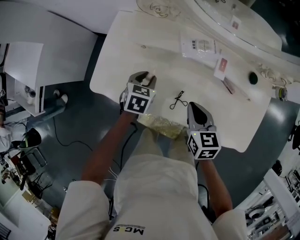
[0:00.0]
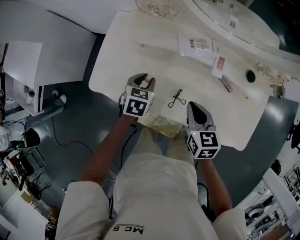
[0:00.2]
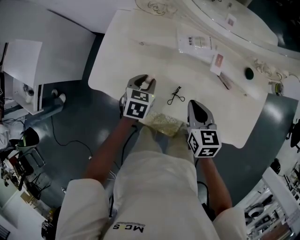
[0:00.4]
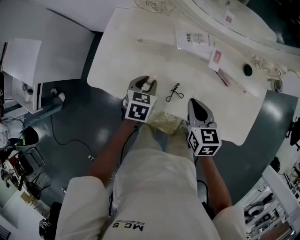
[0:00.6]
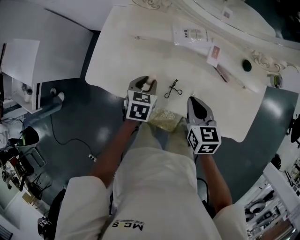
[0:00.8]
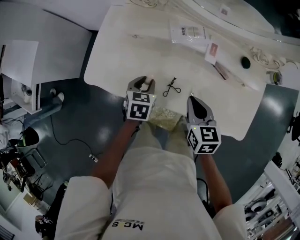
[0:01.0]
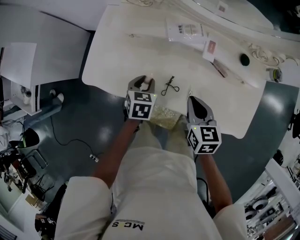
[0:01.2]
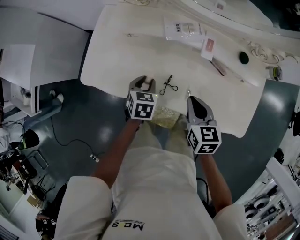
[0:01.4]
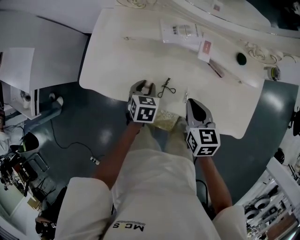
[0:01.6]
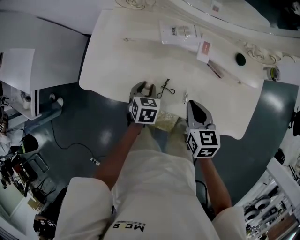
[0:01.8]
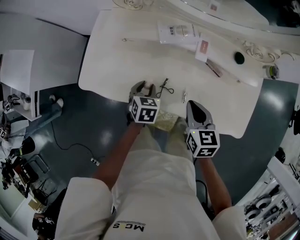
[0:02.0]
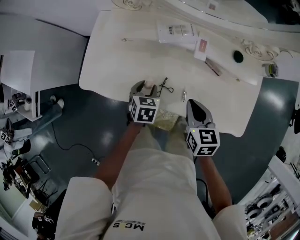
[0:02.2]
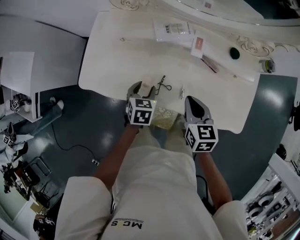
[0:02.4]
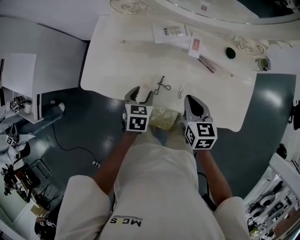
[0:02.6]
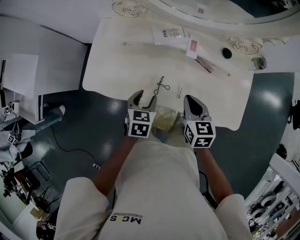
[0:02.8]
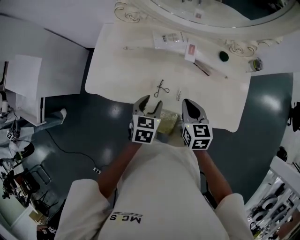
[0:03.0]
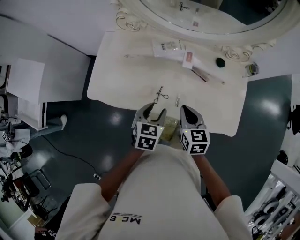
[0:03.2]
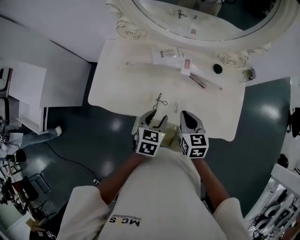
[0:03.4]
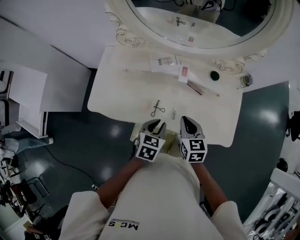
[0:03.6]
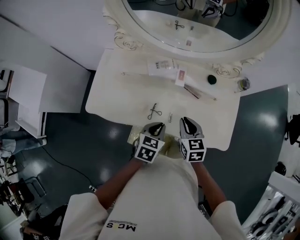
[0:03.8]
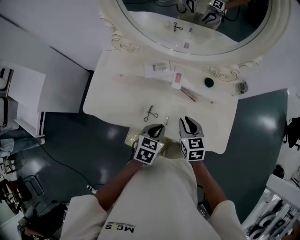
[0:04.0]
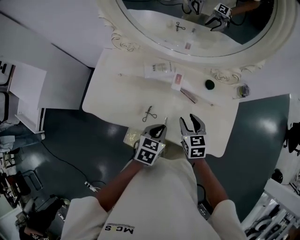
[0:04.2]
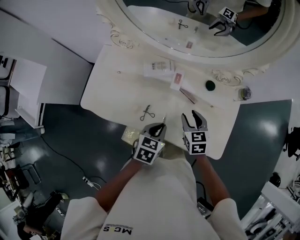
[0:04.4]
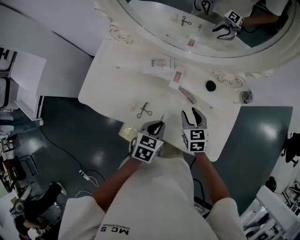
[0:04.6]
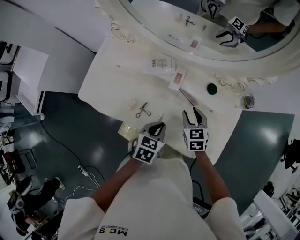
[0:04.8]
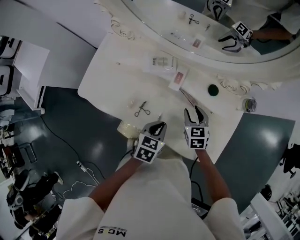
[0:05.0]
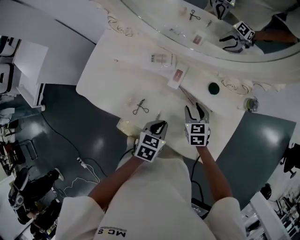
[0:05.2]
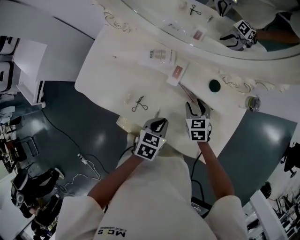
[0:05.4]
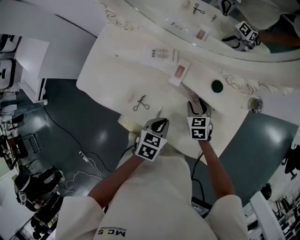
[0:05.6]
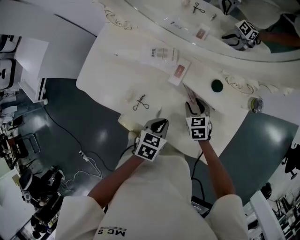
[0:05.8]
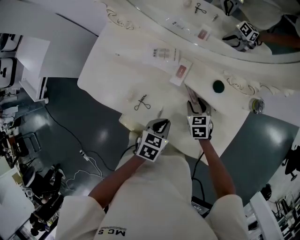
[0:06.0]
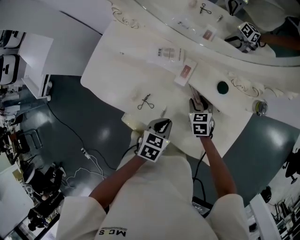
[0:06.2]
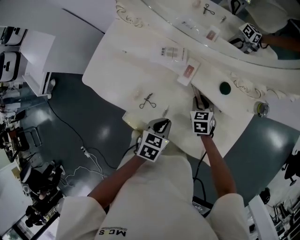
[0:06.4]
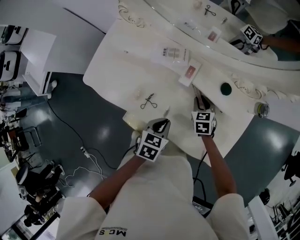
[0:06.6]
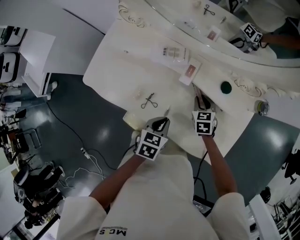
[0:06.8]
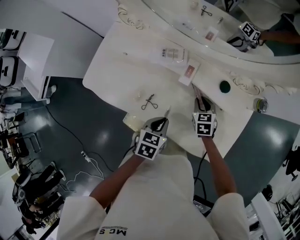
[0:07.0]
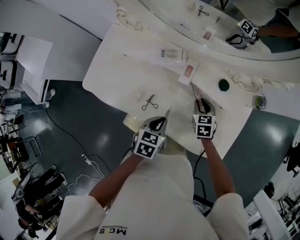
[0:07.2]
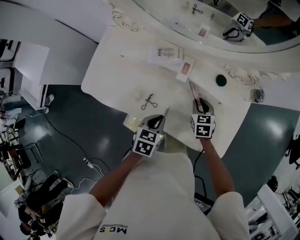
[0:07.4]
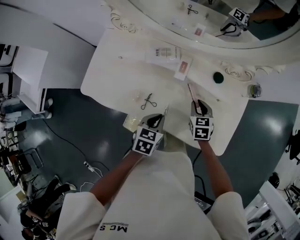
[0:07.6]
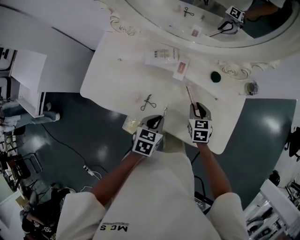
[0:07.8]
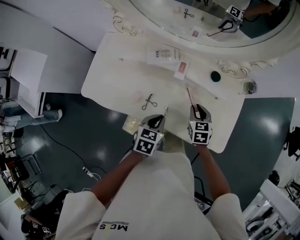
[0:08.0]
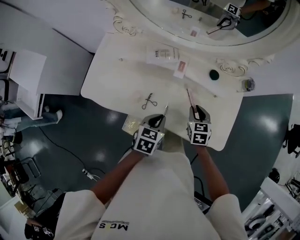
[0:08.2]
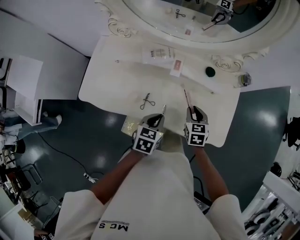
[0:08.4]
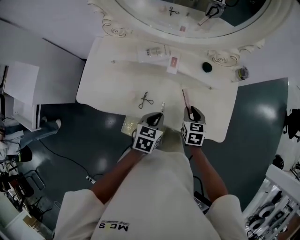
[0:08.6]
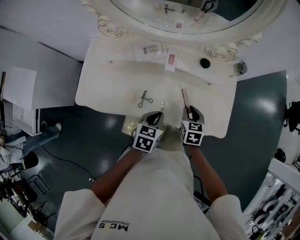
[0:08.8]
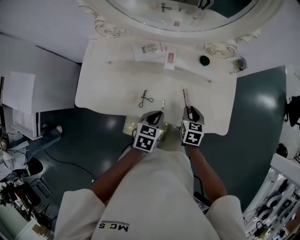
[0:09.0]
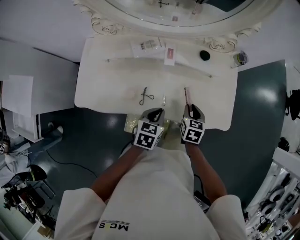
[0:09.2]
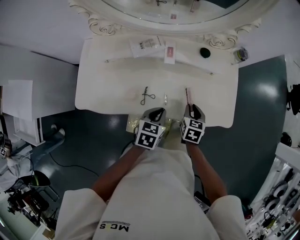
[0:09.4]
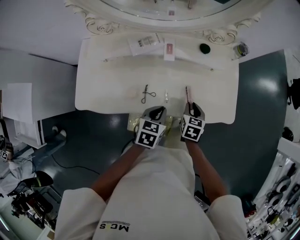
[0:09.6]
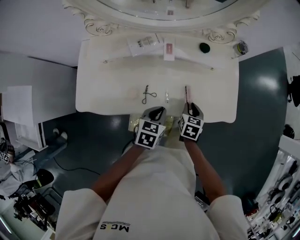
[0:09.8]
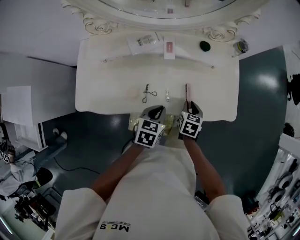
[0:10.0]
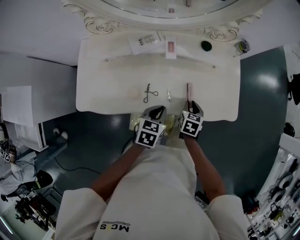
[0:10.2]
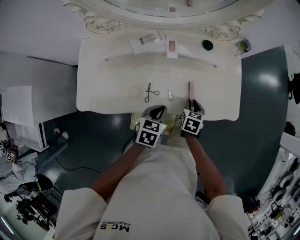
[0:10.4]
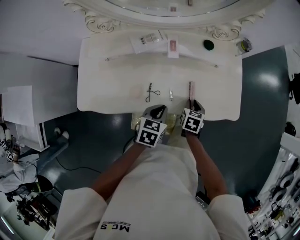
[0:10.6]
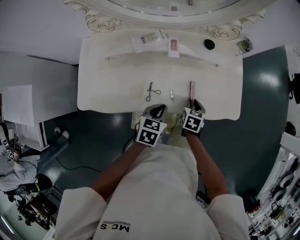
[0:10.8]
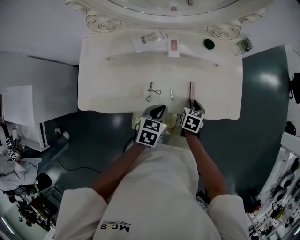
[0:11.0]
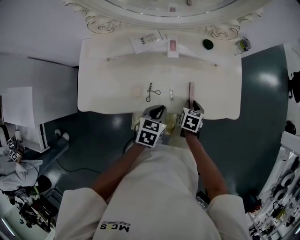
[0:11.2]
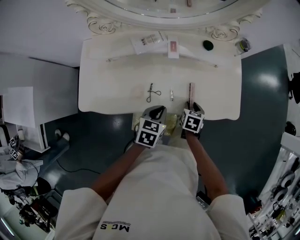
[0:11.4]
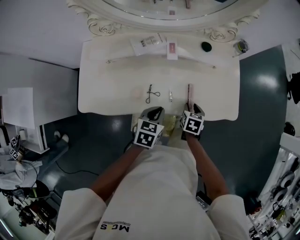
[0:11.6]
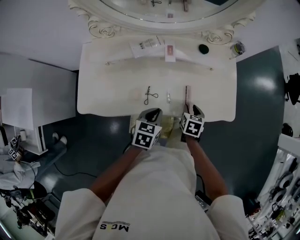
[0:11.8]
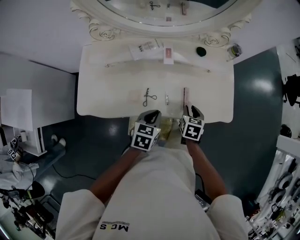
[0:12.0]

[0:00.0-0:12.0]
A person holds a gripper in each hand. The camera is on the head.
0.0 to 1.6 s: The right gripper moves to the right, approximately 5 cm. Meanwhile the left gripper moves backward and to the right, about 10 cm.
1.6 to 3.0 s: The left gripper travels upward and backward by about 15 cm.
3.0 to 4.4 s: The left gripper moves to the right, some 10 cm, and closes up; the right gripper travels to the right and forward by approximately 10 cm, and opens.
4.4 to 6.0 s: The right gripper heads downward and forward, covering approximately 15 cm. Meanwhile the left gripper shifts about 5 cm downward.
6.0 to 7.6 s: The right gripper changes place by some 5 cm, and closes up. Meanwhile the left gripper goes roughly 5 cm to the left.
7.6 to 9.0 s: The right gripper shifts about 10 cm backward, and turns by roughly 20 degrees.
9.0 to 10.4 s: The right gripper heads downward, covering approximately 5 cm.
10.4 to 12.0 s: The right gripper moves roughly 5 cm.

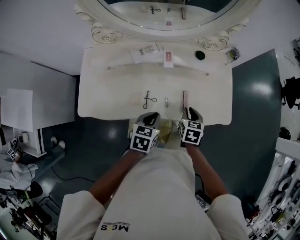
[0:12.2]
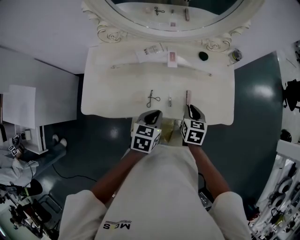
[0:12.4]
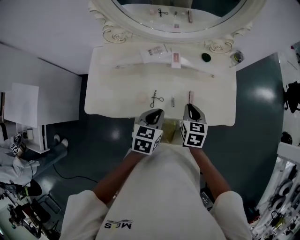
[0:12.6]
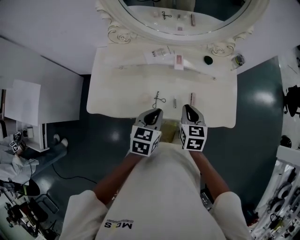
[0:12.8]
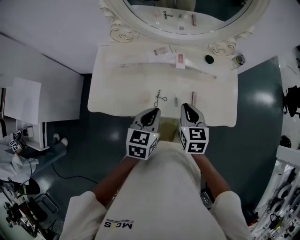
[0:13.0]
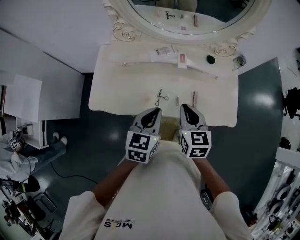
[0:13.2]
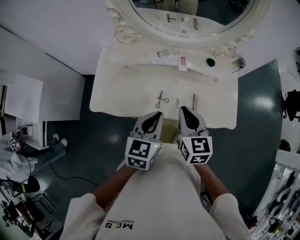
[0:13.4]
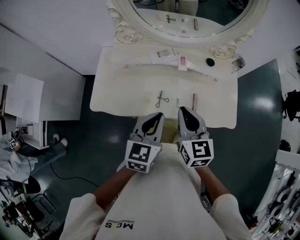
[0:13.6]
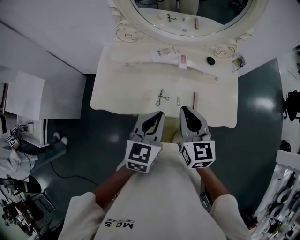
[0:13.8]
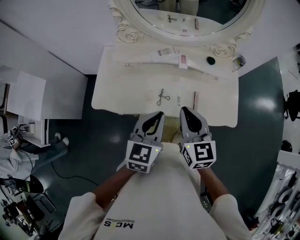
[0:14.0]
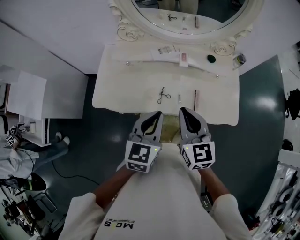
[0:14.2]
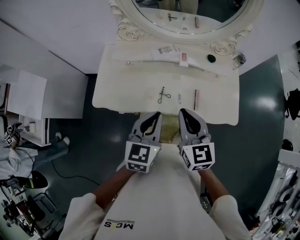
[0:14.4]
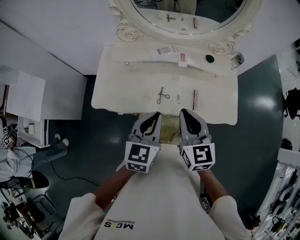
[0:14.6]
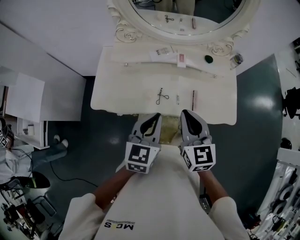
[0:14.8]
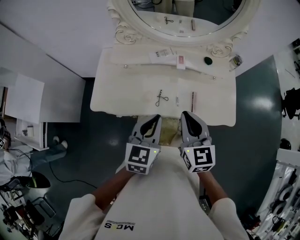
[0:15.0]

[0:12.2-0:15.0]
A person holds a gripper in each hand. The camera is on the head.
12.2 to 13.6 s: The left gripper heads upward, covering about 15 cm, and turns by roughly 30 degrees, while the right gripper heads upward and to the left, covering about 25 cm, and changes its angle by about 40 degrees.
13.6 to 15.0 s: There are only small adjustments of the grippers.

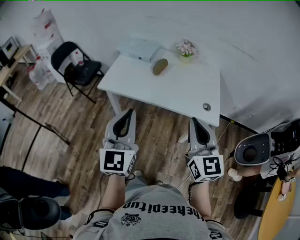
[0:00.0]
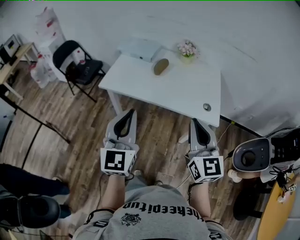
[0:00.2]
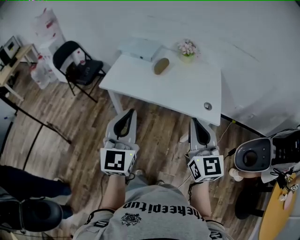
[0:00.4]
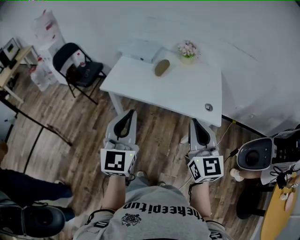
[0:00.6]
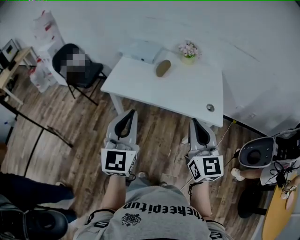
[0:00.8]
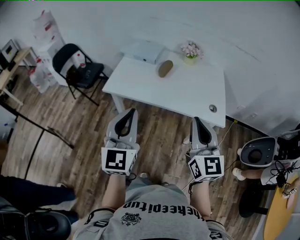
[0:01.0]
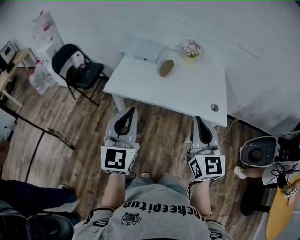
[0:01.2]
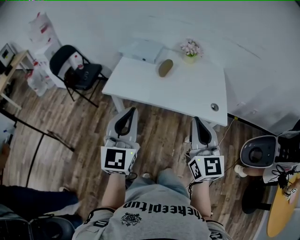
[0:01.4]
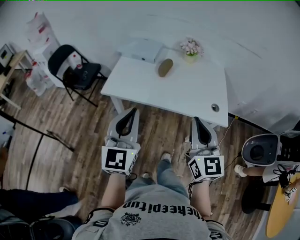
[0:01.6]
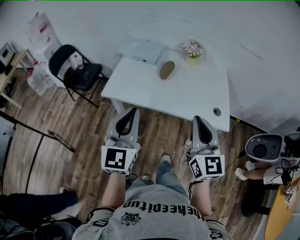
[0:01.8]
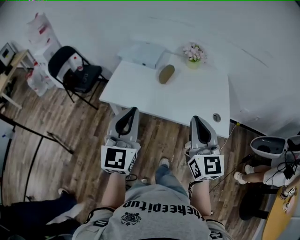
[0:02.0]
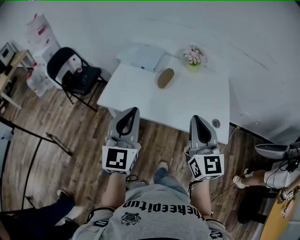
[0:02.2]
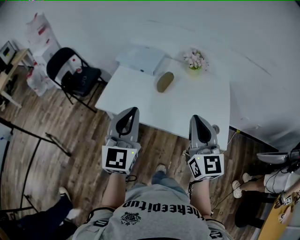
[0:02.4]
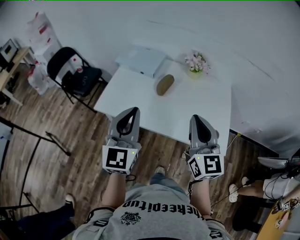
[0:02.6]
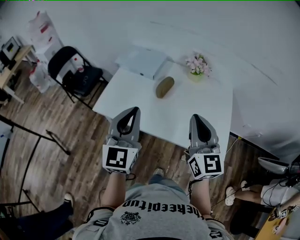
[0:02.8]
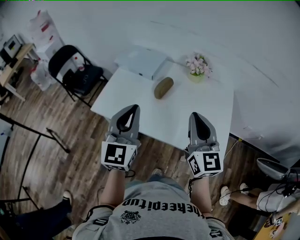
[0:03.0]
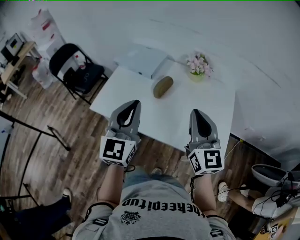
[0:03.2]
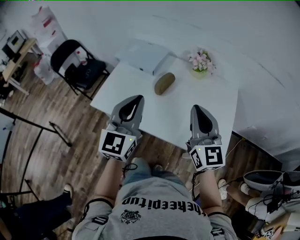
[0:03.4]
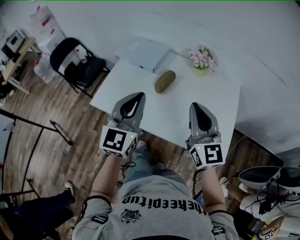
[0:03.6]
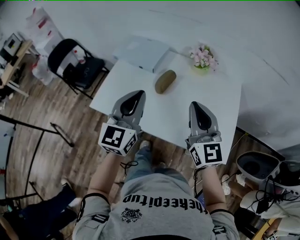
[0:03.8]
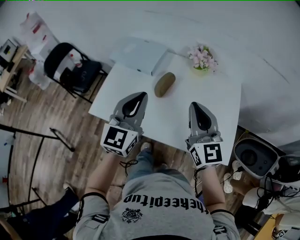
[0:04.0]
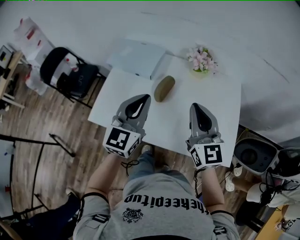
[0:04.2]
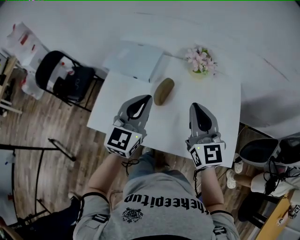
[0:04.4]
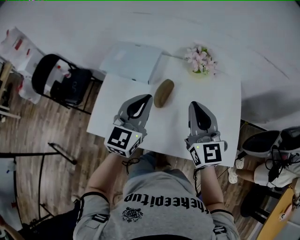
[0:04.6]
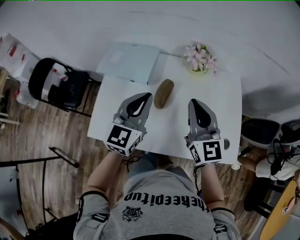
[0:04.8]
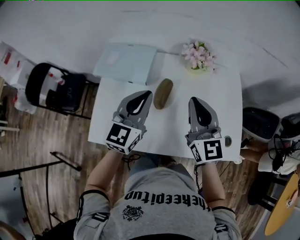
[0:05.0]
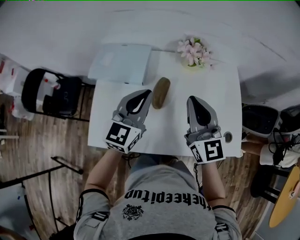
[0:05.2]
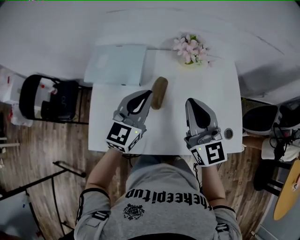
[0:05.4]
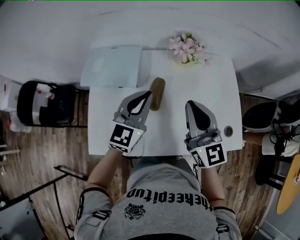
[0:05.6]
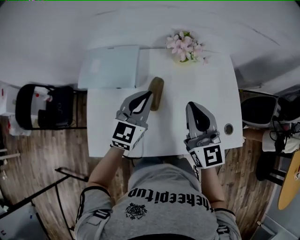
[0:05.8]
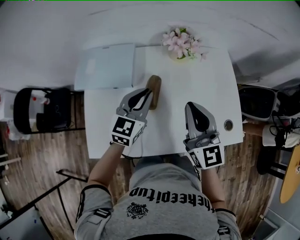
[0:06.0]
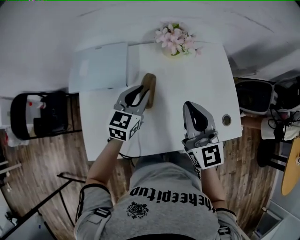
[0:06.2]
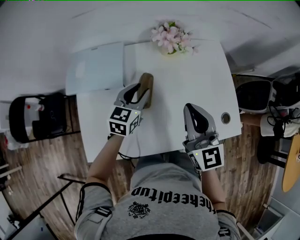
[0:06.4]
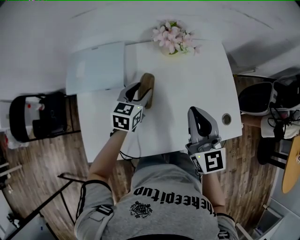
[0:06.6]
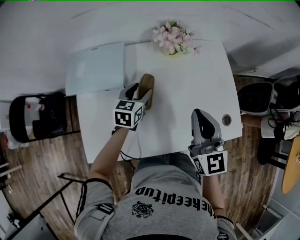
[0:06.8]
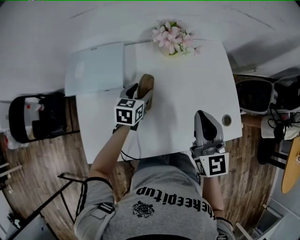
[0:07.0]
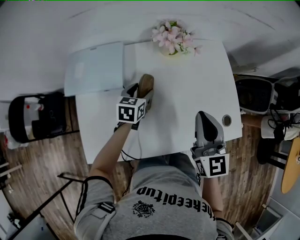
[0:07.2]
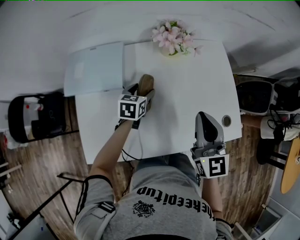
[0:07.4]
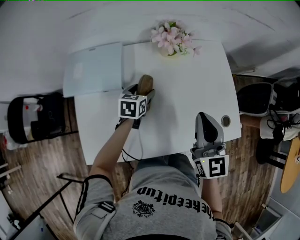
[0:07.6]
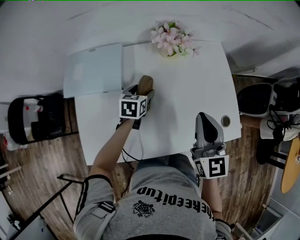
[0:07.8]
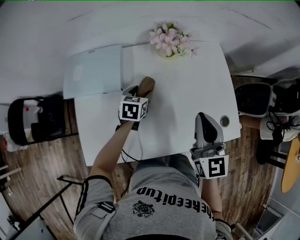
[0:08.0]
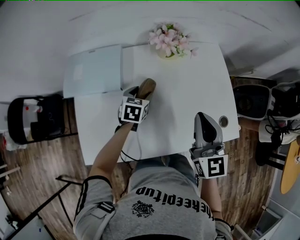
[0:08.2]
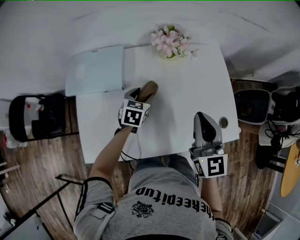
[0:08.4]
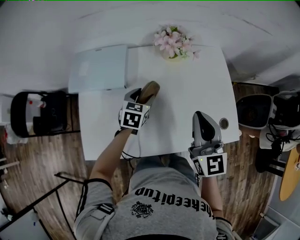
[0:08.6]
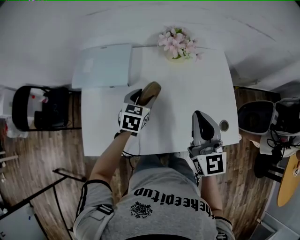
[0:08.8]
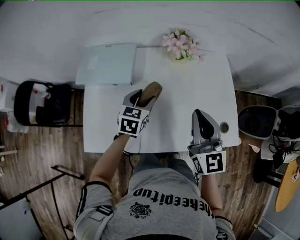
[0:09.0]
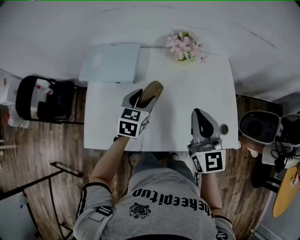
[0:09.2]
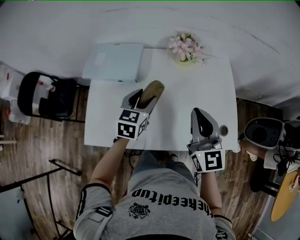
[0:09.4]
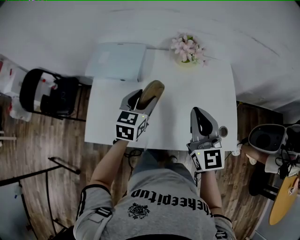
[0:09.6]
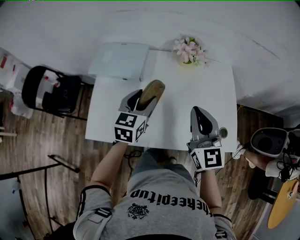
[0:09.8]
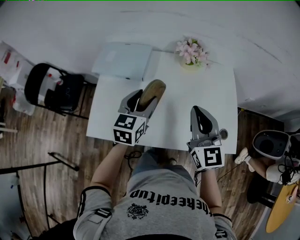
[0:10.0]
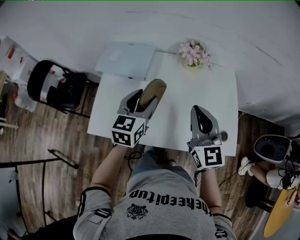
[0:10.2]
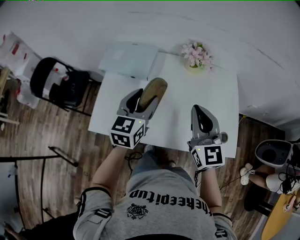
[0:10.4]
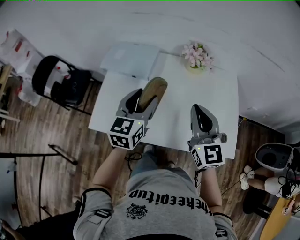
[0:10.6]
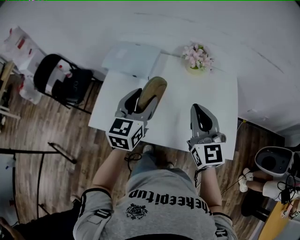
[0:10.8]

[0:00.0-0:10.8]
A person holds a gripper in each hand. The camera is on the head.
0.0 to 1.6 s: The left gripper travels forward by some 5 cm. Meanwhile the right gripper shifts by roughly 5 cm.
1.6 to 3.0 s: Both grippers travel together forward, some 20 cm.
3.0 to 4.6 s: The two grippers go some 15 cm forward. The left gripper rotates some 20 degrees.
4.6 to 6.2 s: The left gripper travels downward and forward by approximately 15 cm, and changes its angle by some 30 degrees.
6.2 to 7.8 s: The left gripper shifts some 15 cm downward and forward, rotates some 30 degrees, and opens its fingers. Meanwhile the right gripper shifts about 5 cm to the right.
7.8 to 9.2 s: The left gripper travels upward and backward by some 15 cm.
9.2 to 10.8 s: The left gripper moves upward and backward, approximately 15 cm, and swivels approximately 20 degrees.
